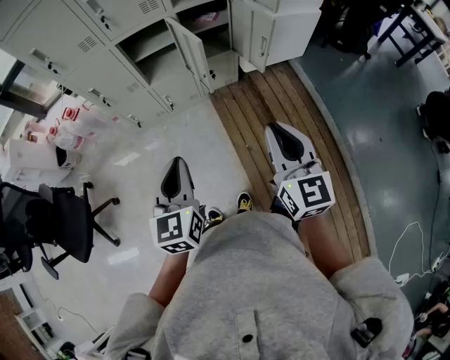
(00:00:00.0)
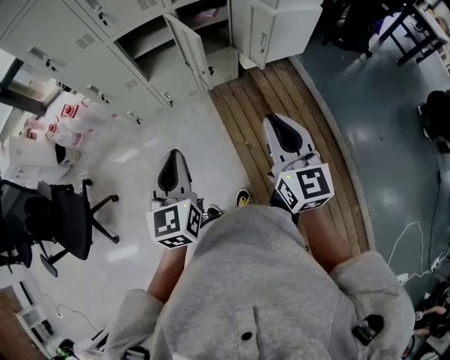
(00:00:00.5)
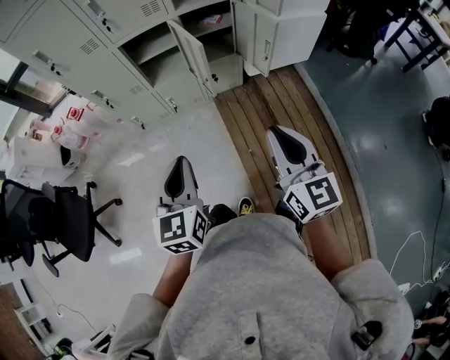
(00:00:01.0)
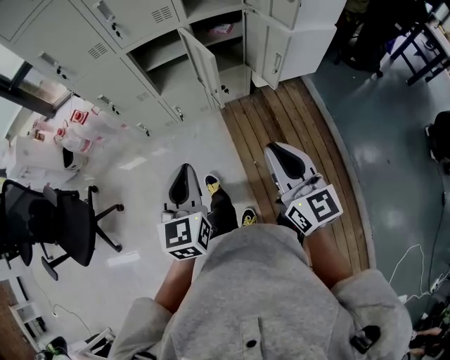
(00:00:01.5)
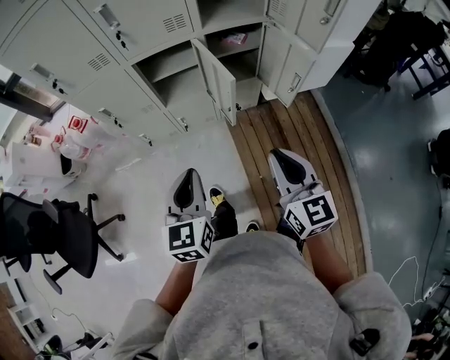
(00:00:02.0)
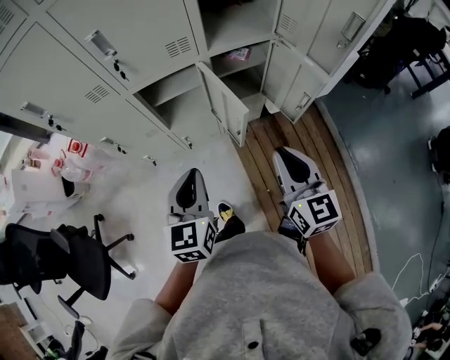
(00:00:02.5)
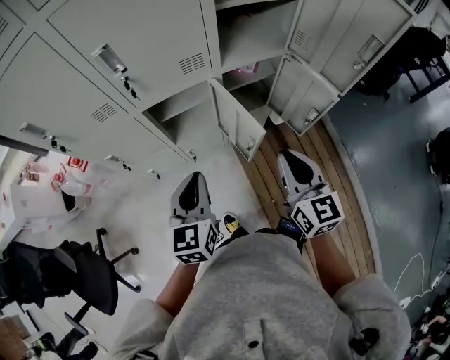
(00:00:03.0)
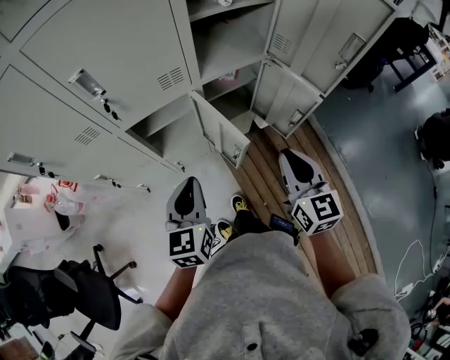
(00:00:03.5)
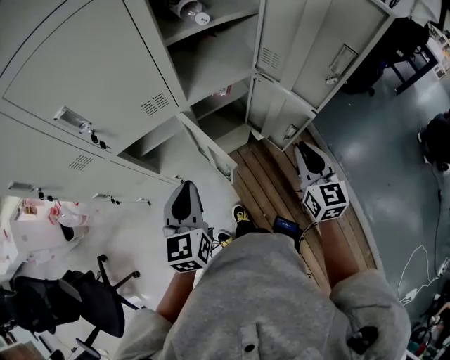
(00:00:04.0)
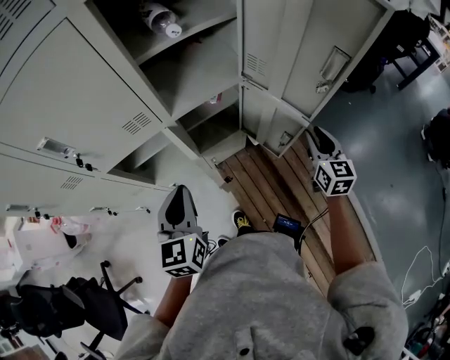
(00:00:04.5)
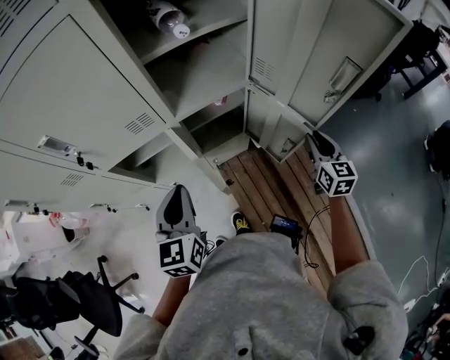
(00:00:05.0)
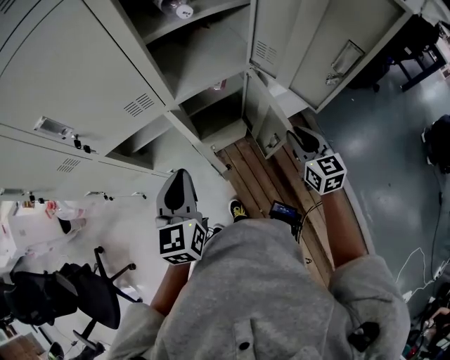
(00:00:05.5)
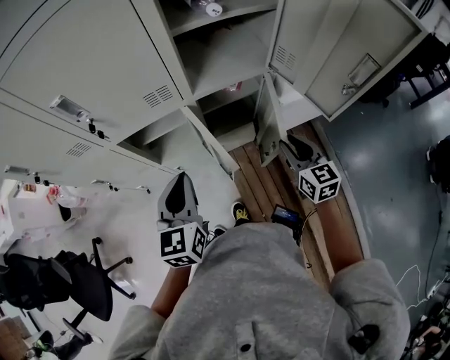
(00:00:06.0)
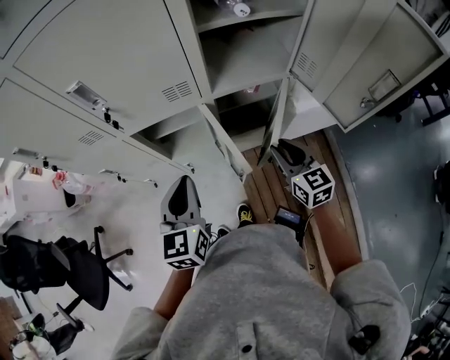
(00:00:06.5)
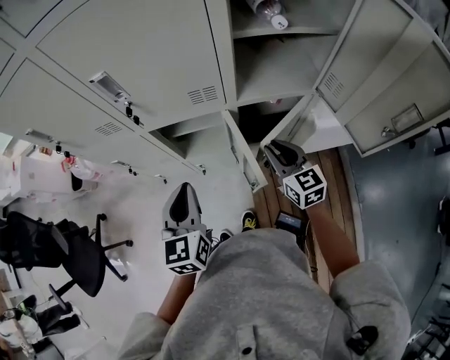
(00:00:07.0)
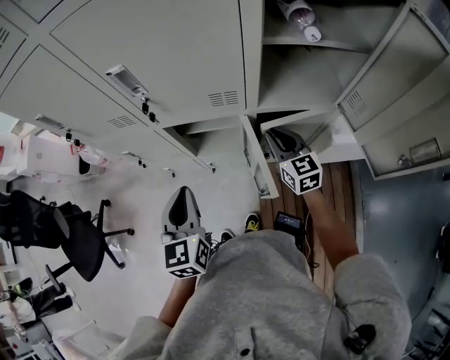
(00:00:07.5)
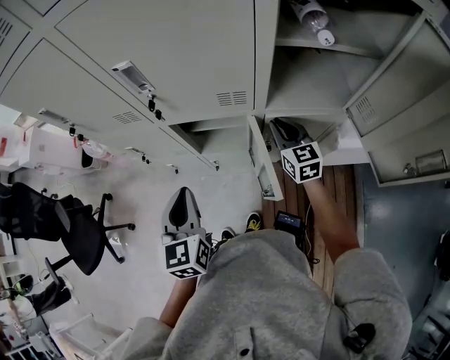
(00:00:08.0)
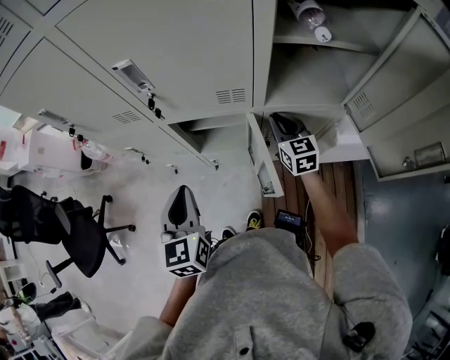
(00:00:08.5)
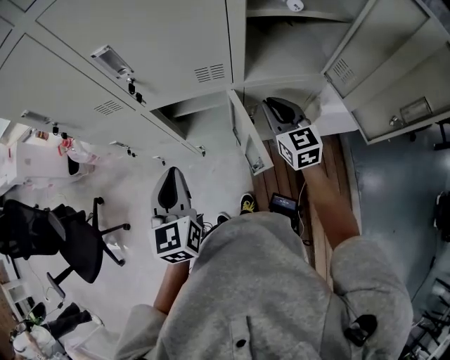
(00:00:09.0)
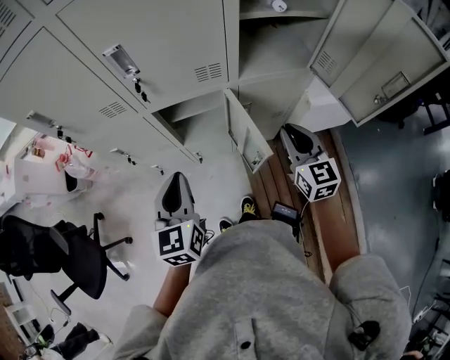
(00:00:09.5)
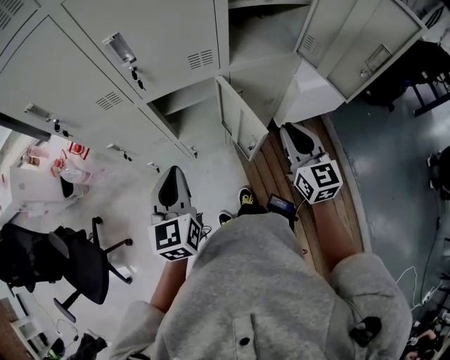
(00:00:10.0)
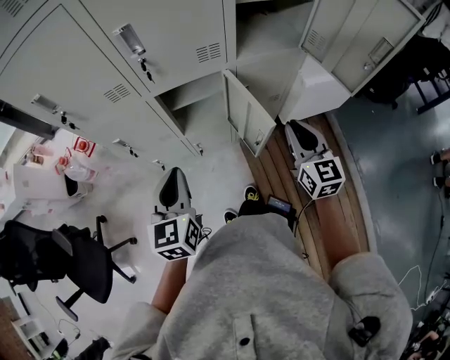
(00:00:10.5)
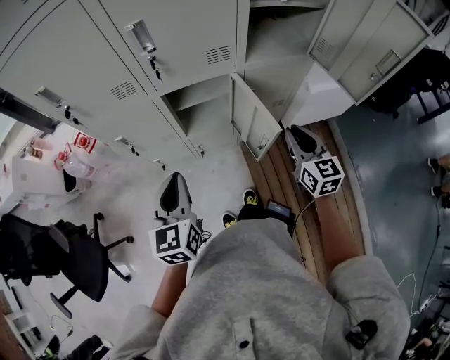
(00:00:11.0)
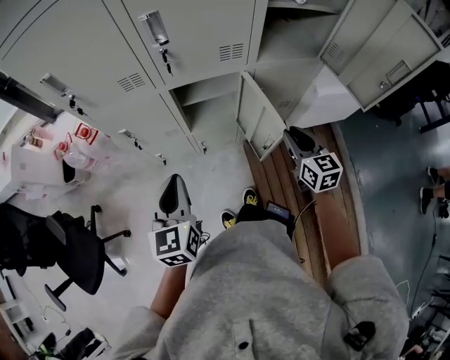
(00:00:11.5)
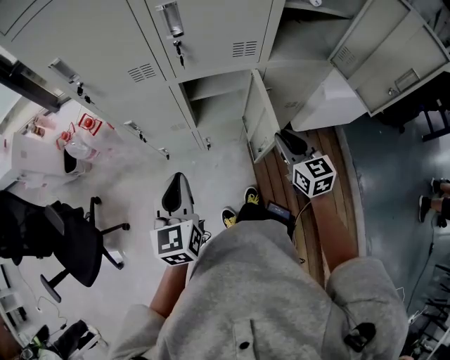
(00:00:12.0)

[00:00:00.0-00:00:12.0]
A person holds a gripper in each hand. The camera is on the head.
00:00:00.0 to 00:00:02.0: Both grippers travel together forward, approximately 15 cm.
00:00:02.0 to 00:00:04.0: The left gripper is displaced forward by about 25 cm, while the right gripper is displaced forward and to the right by approximately 25 cm, and rotates some 20 degrees.
00:00:04.0 to 00:00:06.0: The right gripper travels downward and forward by some 10 cm, and reaches some 10 cm to the right, then returns.
00:00:06.0 to 00:00:08.0: The left gripper shifts roughly 10 cm to the left, and changes its angle by approximately 30 degrees; the right gripper goes some 25 cm forward and to the left.
00:00:08.0 to 00:00:10.0: The right gripper goes about 25 cm backward, and swivels some 20 degrees. The left gripper is displaced backward by roughly 5 cm.
00:00:10.0 to 00:00:12.0: The left gripper heads to the left, covering roughly 10 cm. The right gripper travels to the left and downward by approximately 10 cm.

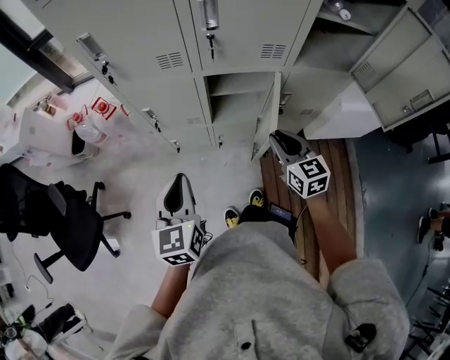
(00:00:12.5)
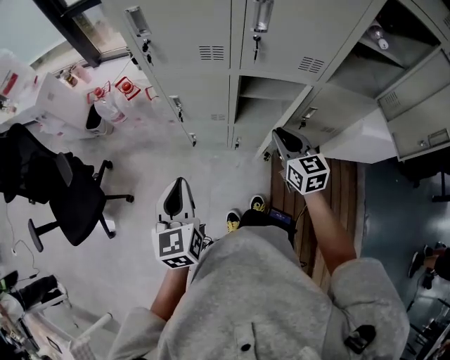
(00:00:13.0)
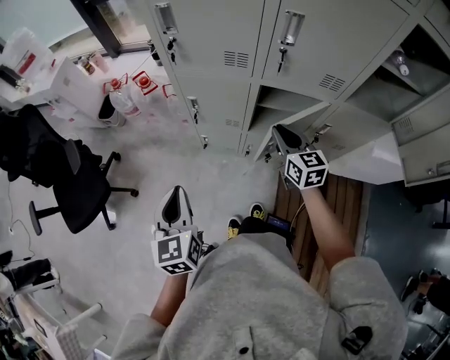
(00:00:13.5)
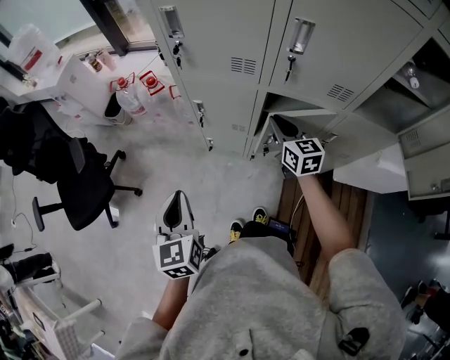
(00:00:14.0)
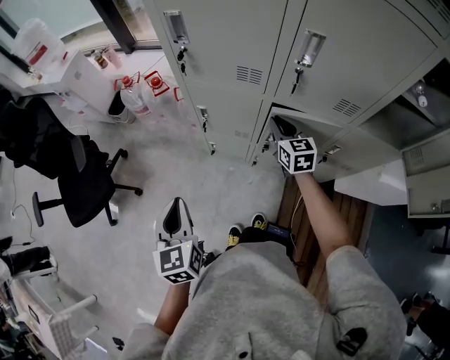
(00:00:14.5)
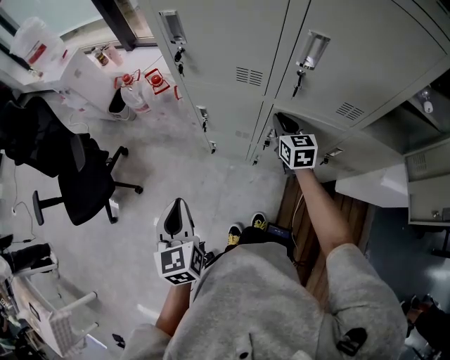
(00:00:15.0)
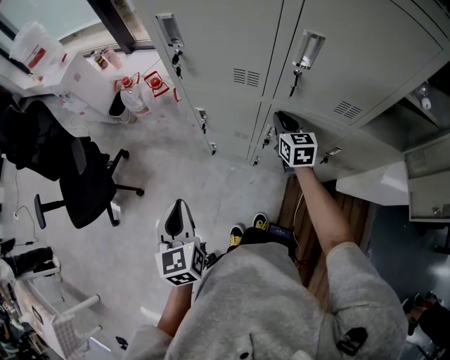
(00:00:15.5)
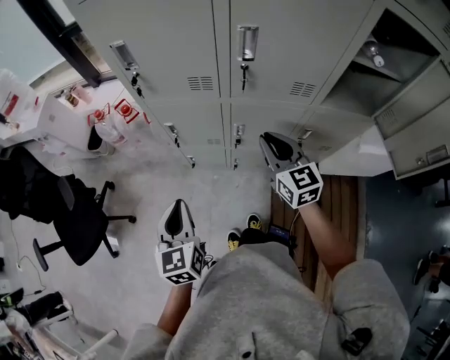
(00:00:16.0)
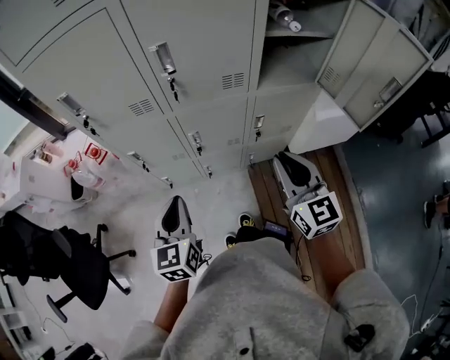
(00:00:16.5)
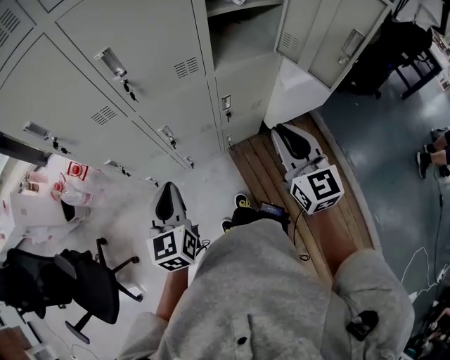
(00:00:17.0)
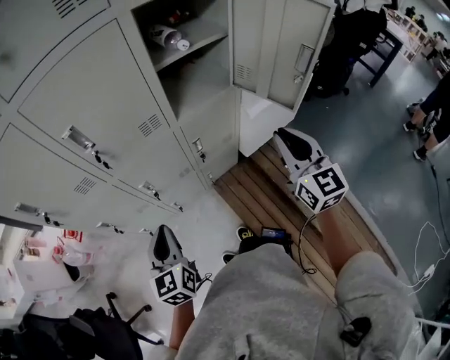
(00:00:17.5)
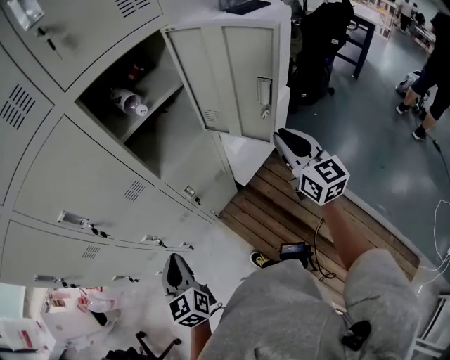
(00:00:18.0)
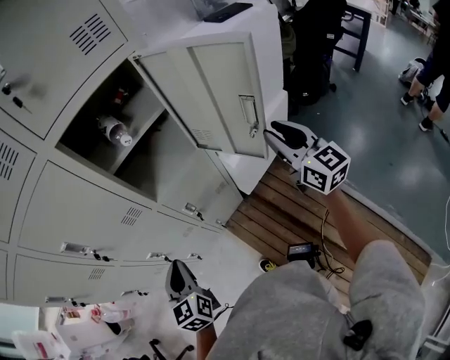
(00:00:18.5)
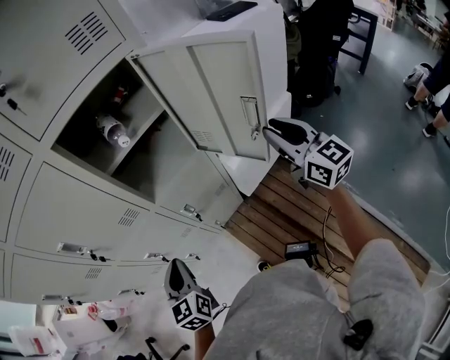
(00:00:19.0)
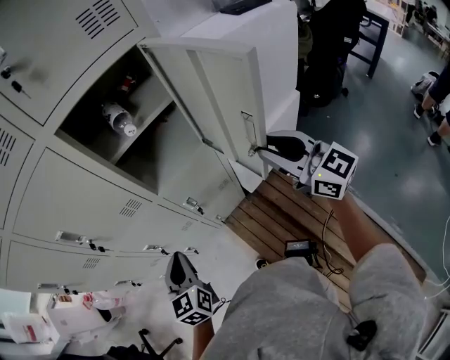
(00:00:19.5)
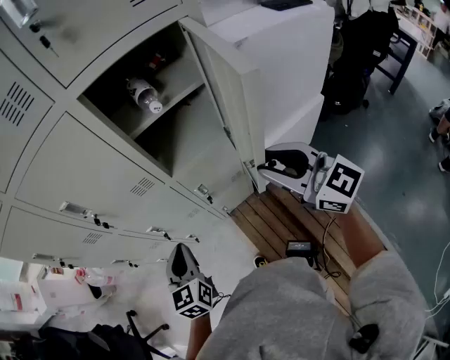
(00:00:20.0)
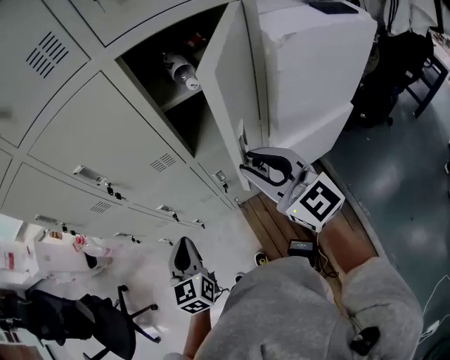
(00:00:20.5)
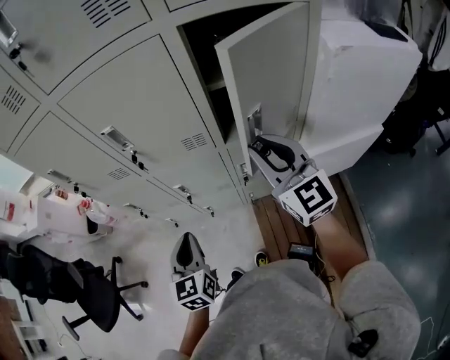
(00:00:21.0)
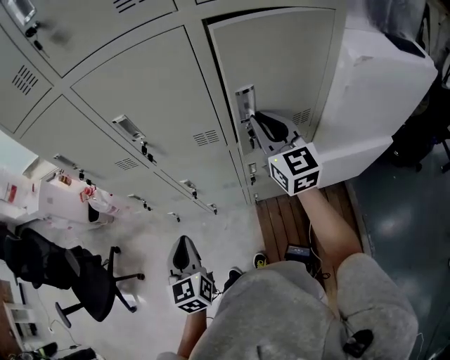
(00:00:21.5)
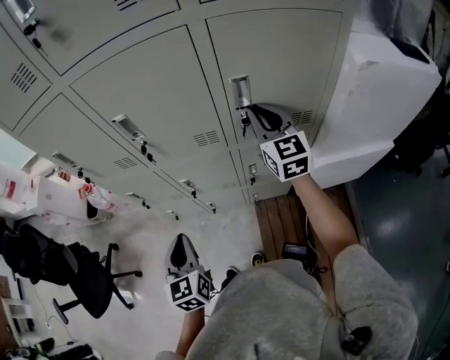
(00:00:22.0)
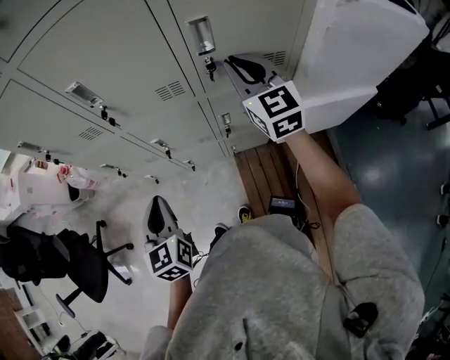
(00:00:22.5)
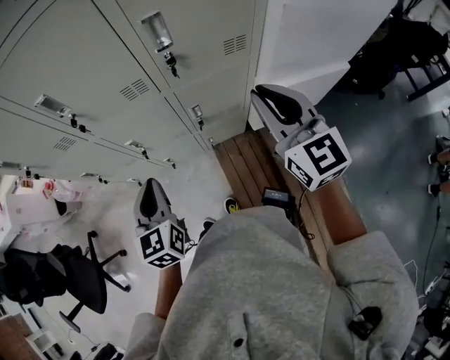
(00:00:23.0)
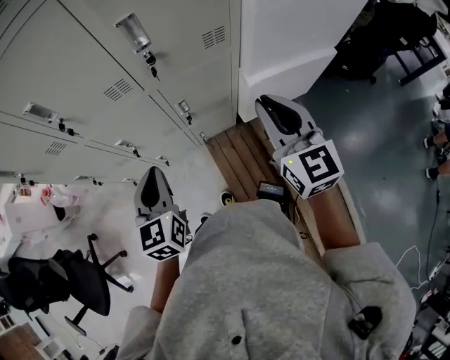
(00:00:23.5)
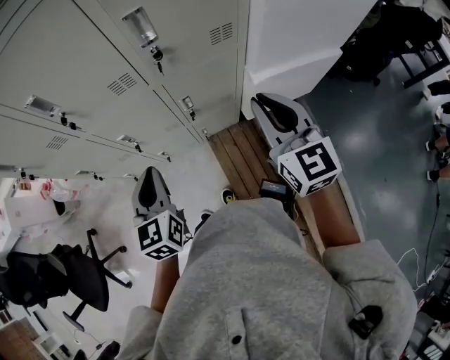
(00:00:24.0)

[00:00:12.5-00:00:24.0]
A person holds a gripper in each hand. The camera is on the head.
00:00:12.5 to 00:00:14.5: The right gripper goes approximately 25 cm forward and to the left; the left gripper is displaced to the left by approximately 10 cm, and swivels about 30 degrees.
00:00:14.5 to 00:00:16.5: The right gripper moves roughly 35 cm, and rotates some 30 degrees, while the left gripper moves about 15 cm, and swivels roughly 30 degrees.
00:00:16.5 to 00:00:18.5: The left gripper is displaced to the right and forward by about 25 cm; the right gripper is displaced to the right by some 40 cm, and swivels approximately 30 degrees.
00:00:18.5 to 00:00:20.0: The right gripper is displaced to the left by approximately 15 cm, and changes its angle by about 40 degrees.
00:00:20.0 to 00:00:22.0: The right gripper goes approximately 25 cm forward and to the left; the left gripper is displaced to the left by about 10 cm, and changes its angle by some 20 degrees.
00:00:22.0 to 00:00:24.0: The left gripper shifts about 10 cm to the right; the right gripper is displaced backward and to the right by some 25 cm.

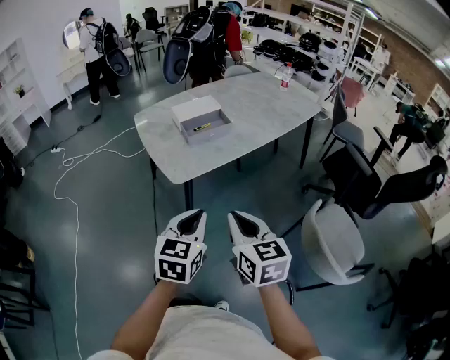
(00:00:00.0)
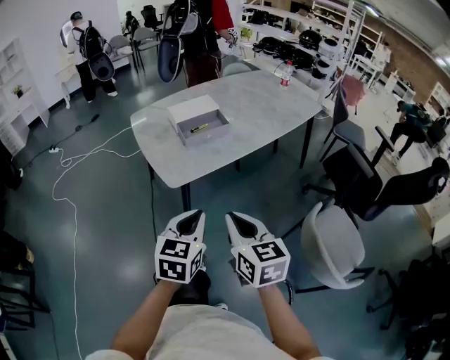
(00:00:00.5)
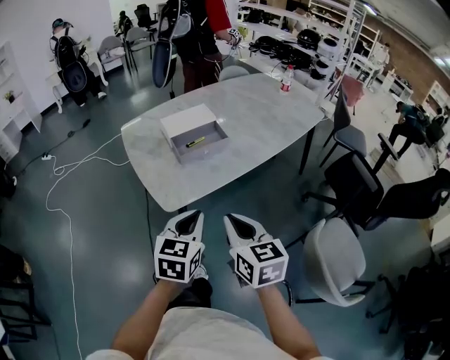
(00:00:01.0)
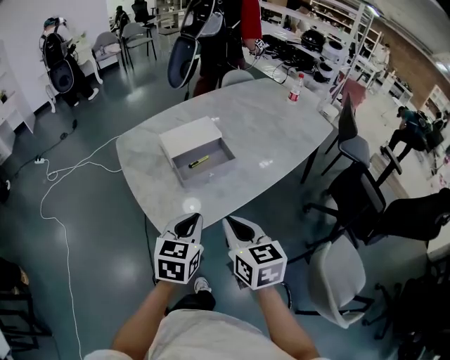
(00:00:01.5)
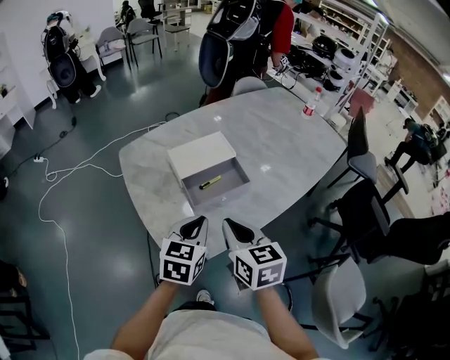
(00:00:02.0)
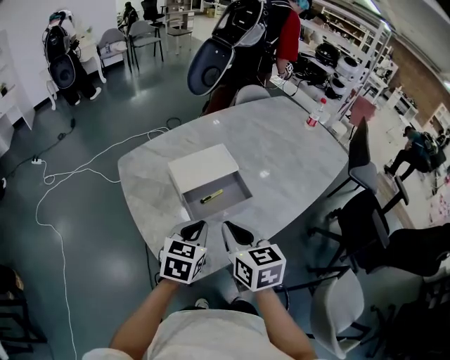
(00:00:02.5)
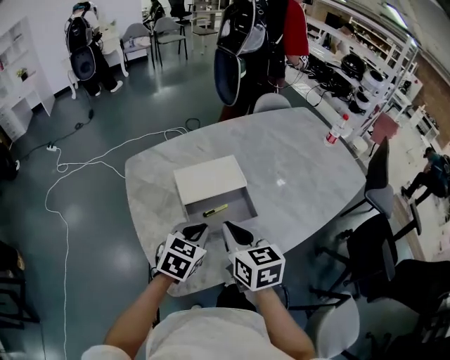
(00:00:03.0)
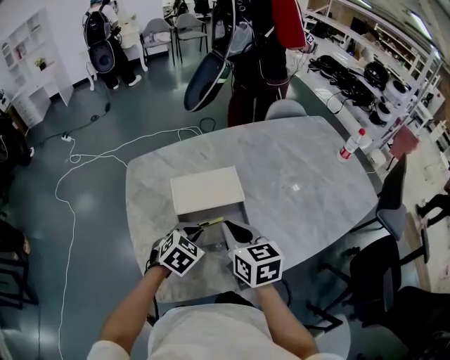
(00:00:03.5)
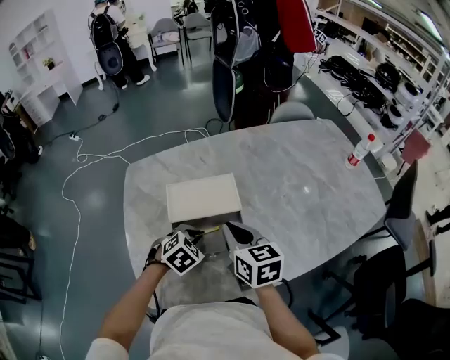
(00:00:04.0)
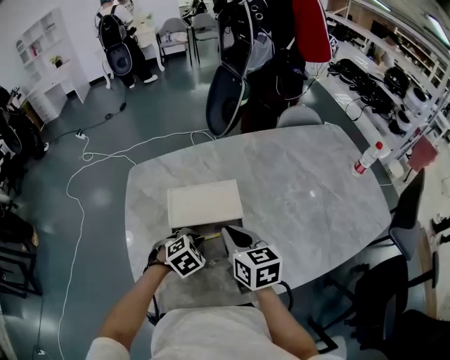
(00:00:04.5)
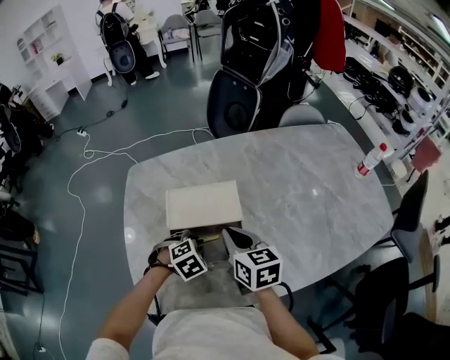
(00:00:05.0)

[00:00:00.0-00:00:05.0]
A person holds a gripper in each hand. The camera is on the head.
00:00:00.0 to 00:00:02.5: The two grippers travel together, forward, about 40 cm.
00:00:02.5 to 00:00:05.0: The left gripper is displaced downward, forward and to the right by about 20 cm, angles its fingers downward, by roughly 40 degrees, and opens up; the right gripper shifts about 20 cm forward and to the right, and turns by some 20 degrees.
